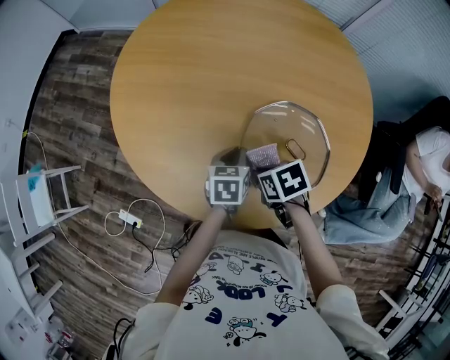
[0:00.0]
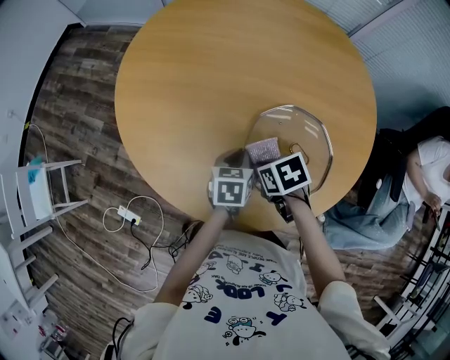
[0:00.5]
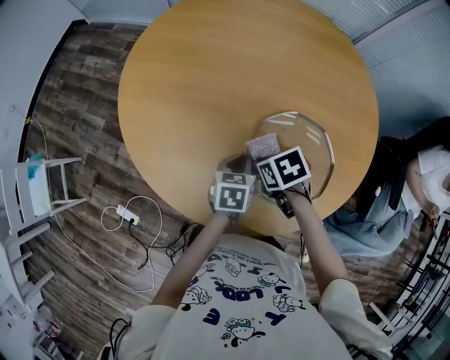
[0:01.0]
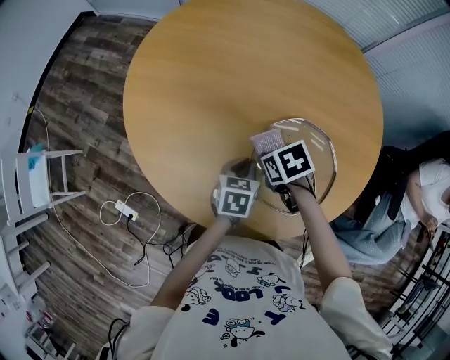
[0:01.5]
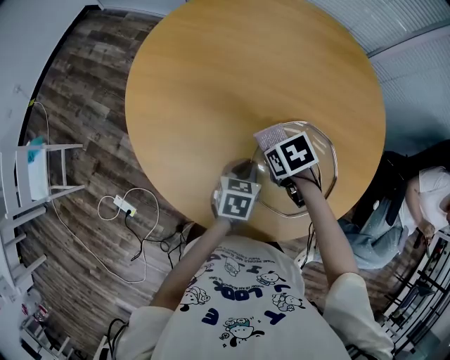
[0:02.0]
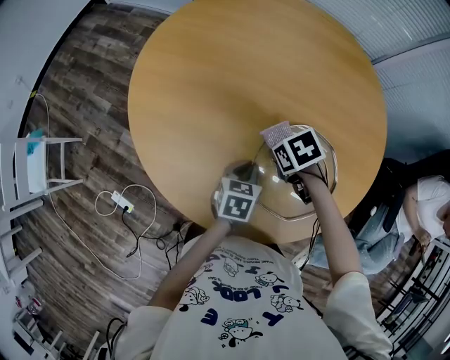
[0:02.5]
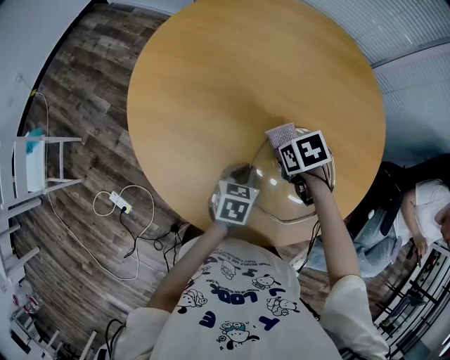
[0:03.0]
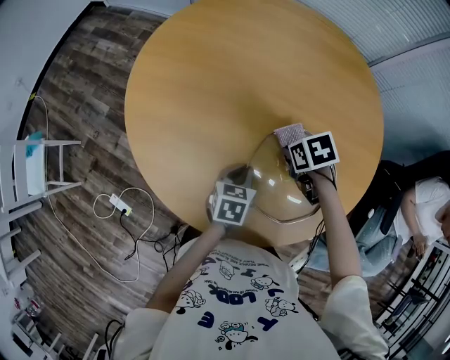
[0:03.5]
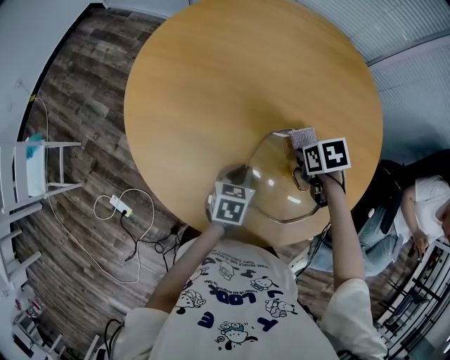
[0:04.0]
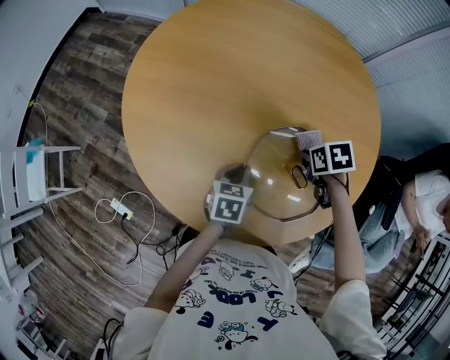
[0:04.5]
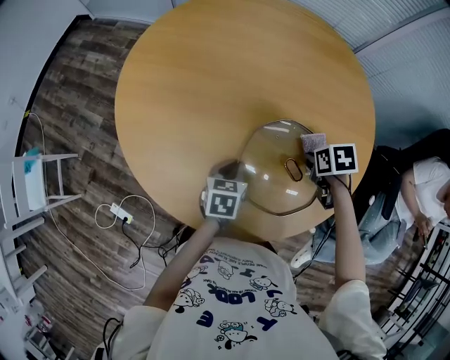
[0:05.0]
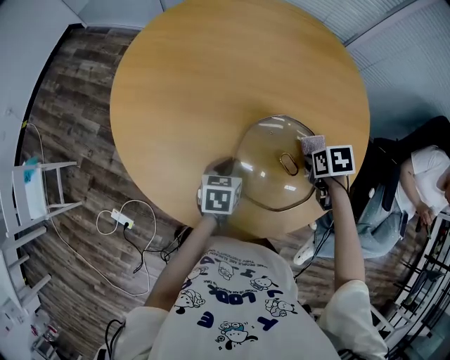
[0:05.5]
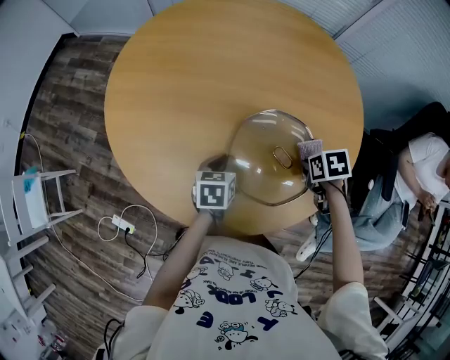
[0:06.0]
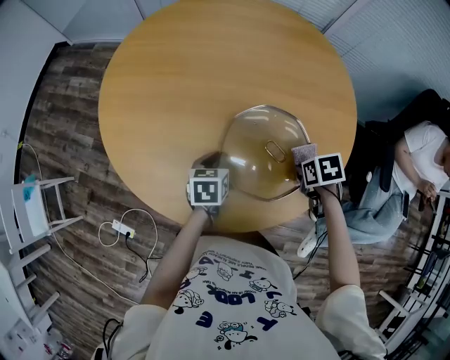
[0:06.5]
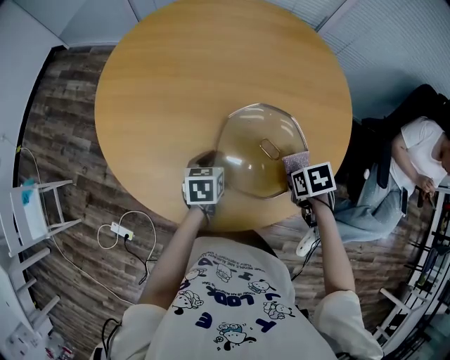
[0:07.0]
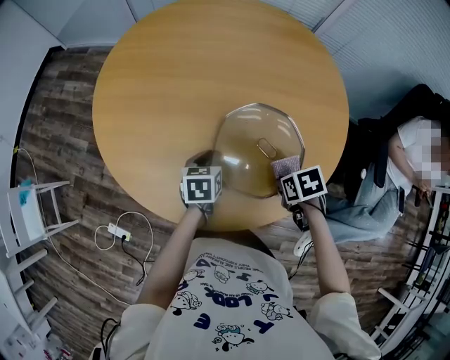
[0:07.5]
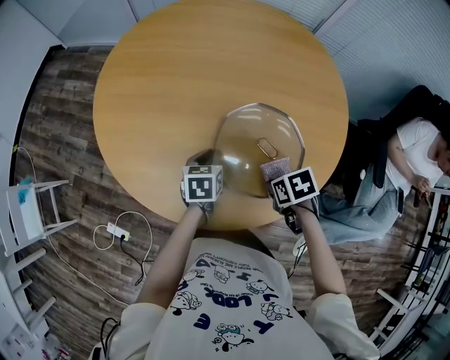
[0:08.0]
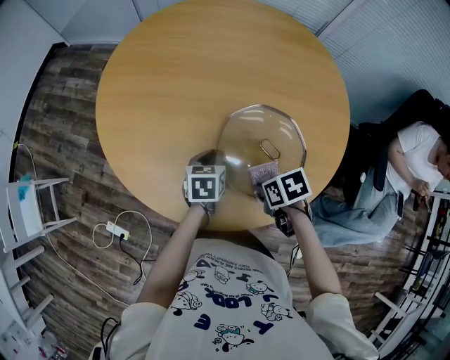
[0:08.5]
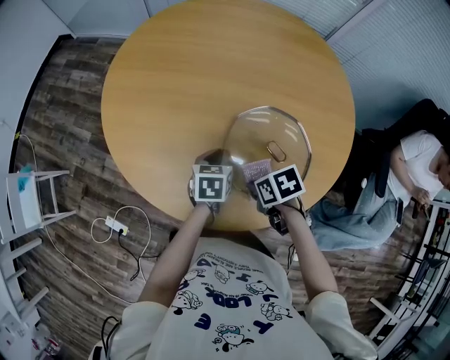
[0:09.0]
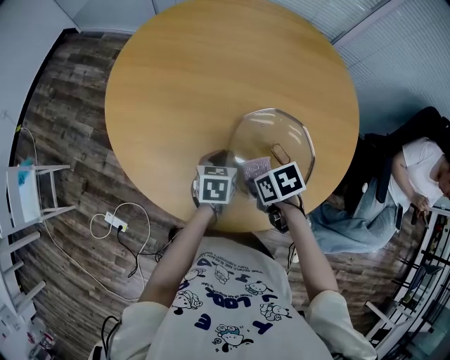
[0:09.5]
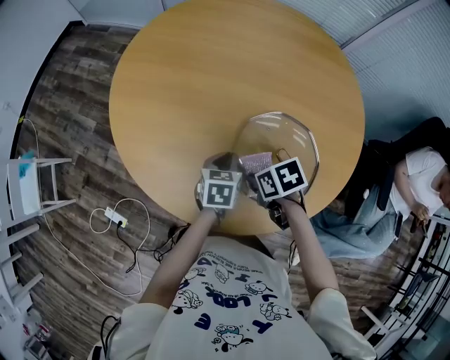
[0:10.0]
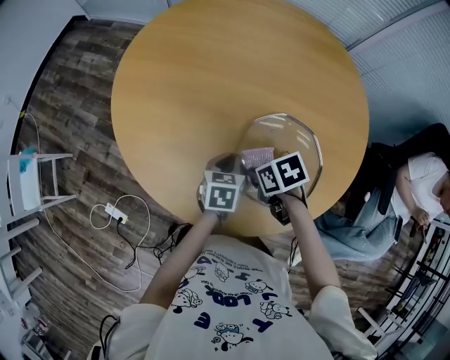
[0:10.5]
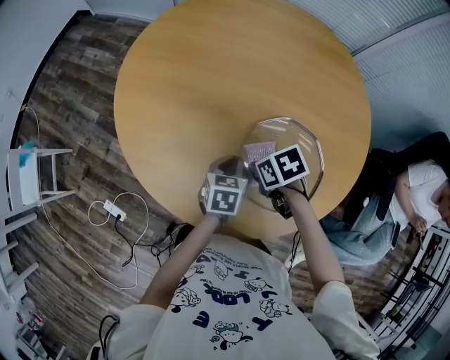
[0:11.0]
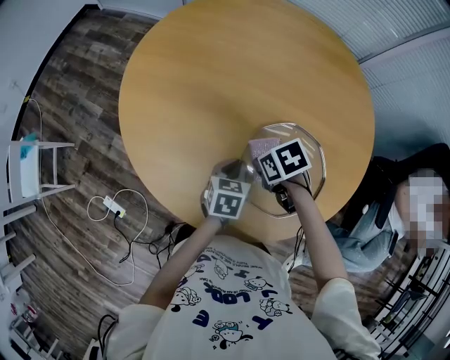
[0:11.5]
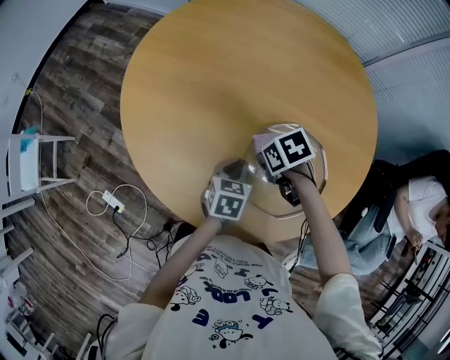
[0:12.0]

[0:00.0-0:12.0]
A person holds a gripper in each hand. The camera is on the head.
0:00.0 to 0:02.0: The right gripper goes approximately 10 cm forward.
0:02.0 to 0:04.0: The right gripper ends up about 10 cm from where it was.
0:04.0 to 0:06.0: The right gripper shifts by approximately 15 cm.
0:06.0 to 0:08.0: The right gripper changes place by some 10 cm.
0:08.0 to 0:10.0: The right gripper moves approximately 10 cm.
0:10.0 to 0:12.0: The right gripper shifts about 10 cm forward.

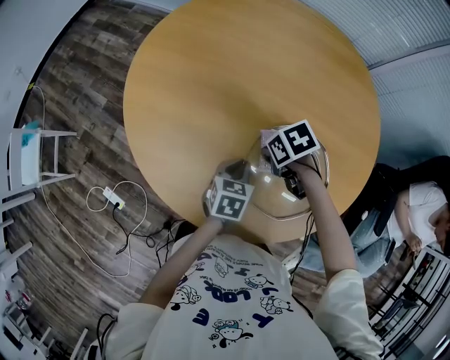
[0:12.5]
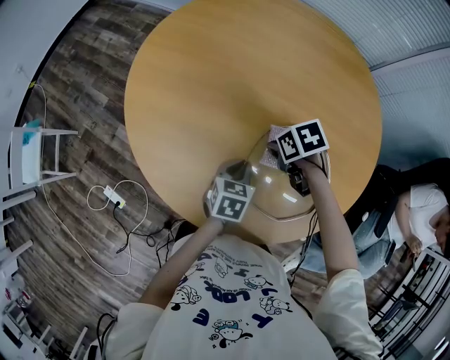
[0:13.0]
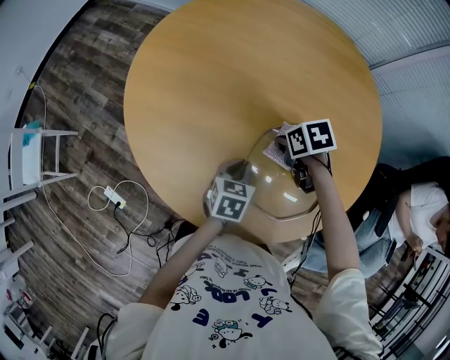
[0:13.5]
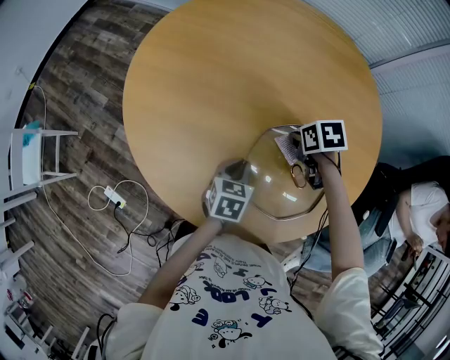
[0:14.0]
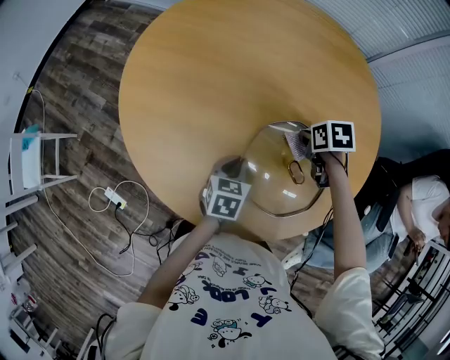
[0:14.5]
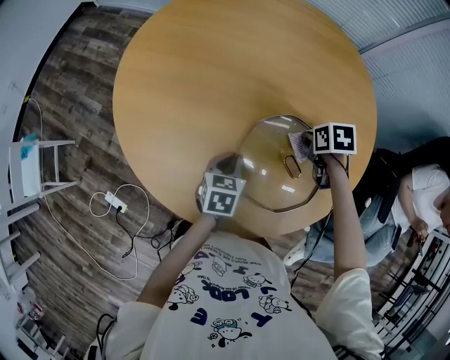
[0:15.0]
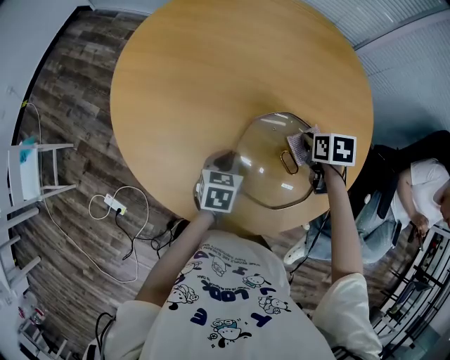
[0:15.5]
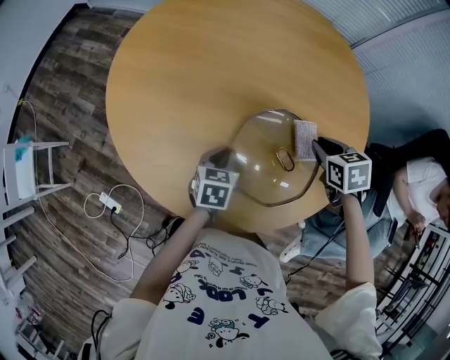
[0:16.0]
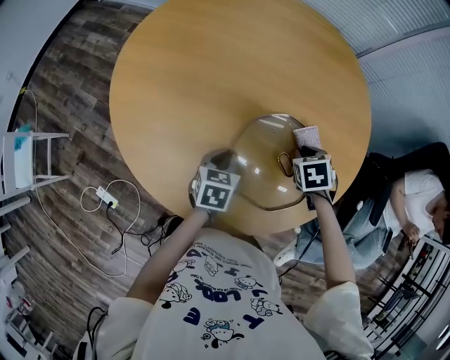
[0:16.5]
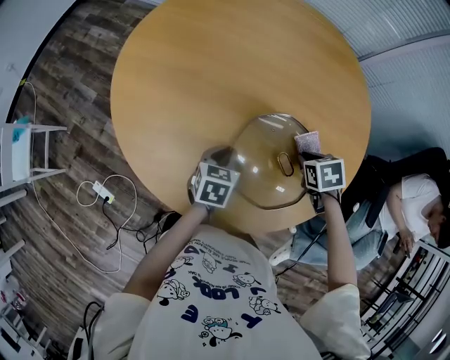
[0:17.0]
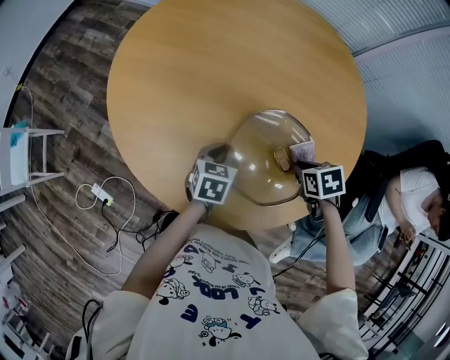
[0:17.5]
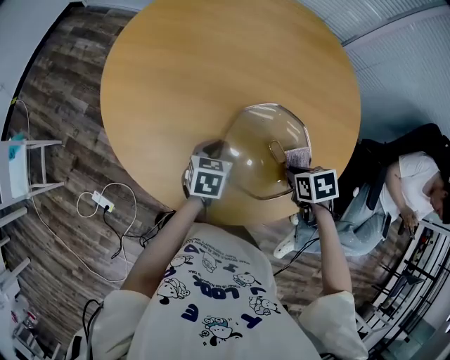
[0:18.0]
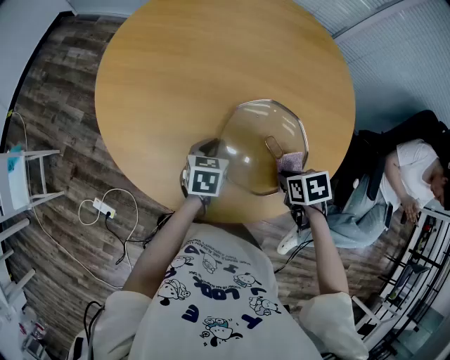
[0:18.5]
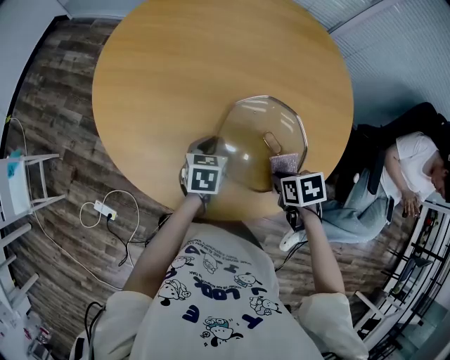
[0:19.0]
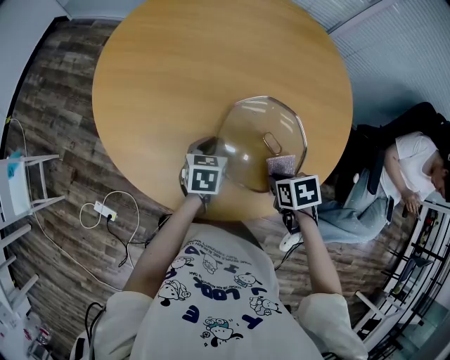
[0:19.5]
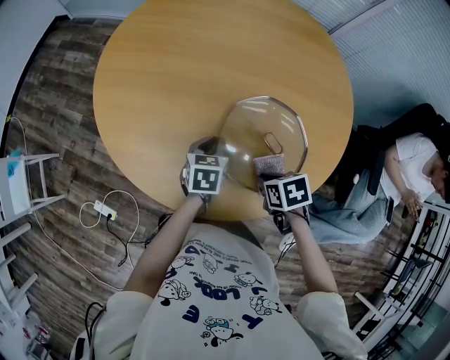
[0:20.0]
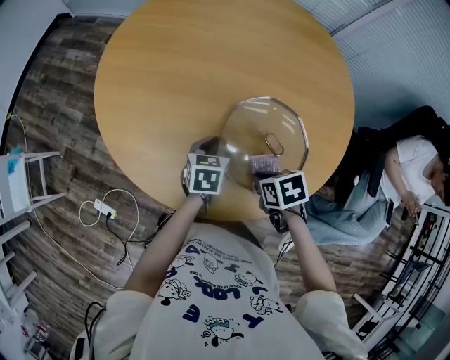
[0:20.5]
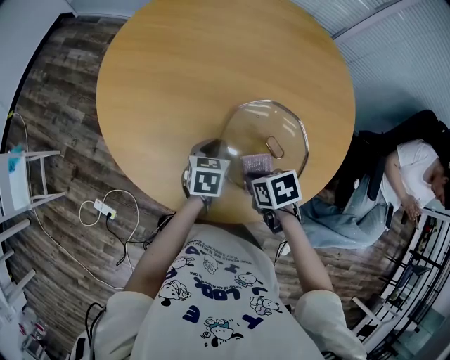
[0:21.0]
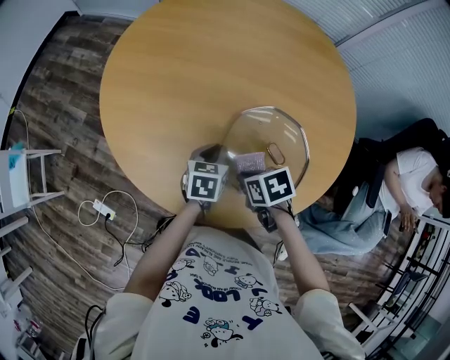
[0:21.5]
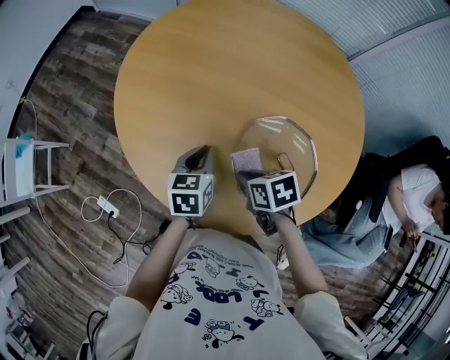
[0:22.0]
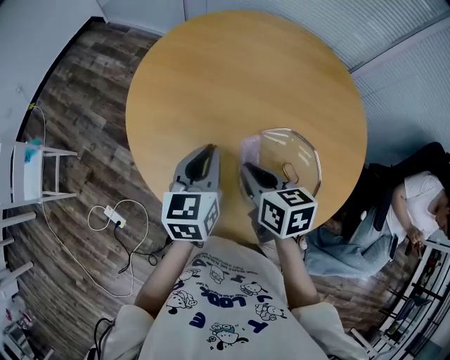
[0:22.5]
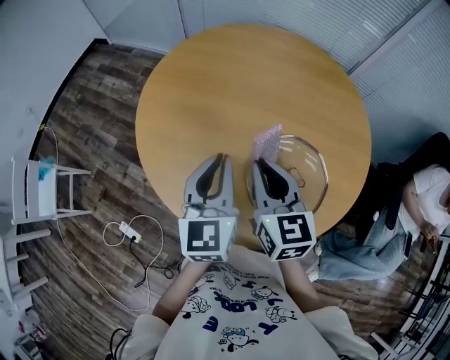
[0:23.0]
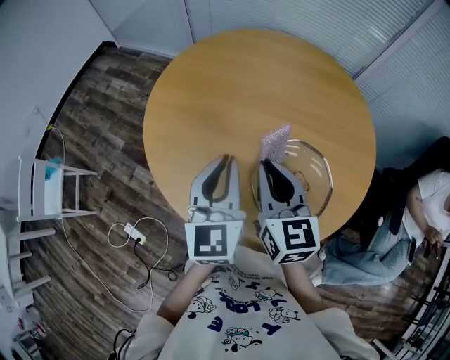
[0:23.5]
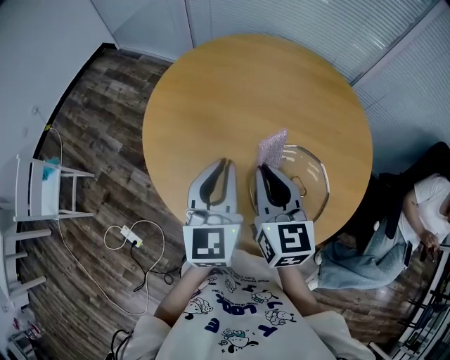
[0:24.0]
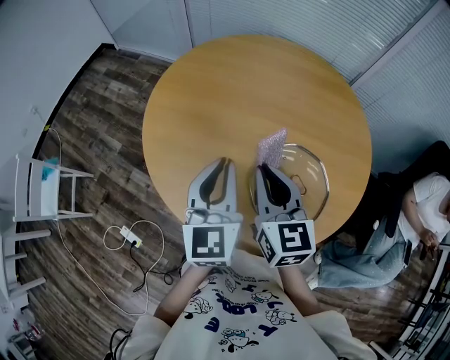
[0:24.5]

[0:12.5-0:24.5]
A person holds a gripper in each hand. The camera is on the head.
0:12.5 to 0:14.5: The right gripper changes place by approximately 15 cm, and turns by roughly 30 degrees.
0:14.5 to 0:16.5: The right gripper moves some 10 cm, and rotates some 20 degrees.
0:16.5 to 0:18.5: The right gripper moves approximately 15 cm, and swivels roughly 30 degrees.
0:18.5 to 0:20.5: The right gripper ends up some 10 cm from where it was.
0:20.5 to 0:22.5: The left gripper is displaced upward and to the left by about 20 cm, and turns by approximately 30 degrees; the right gripper travels forward, upward and to the left by about 20 cm, and points its fingers about 30 degrees further upward.
0:22.5 to 0:24.5: The grippers both shift upward by some 10 cm. The right gripper turns by approximately 30 degrees.

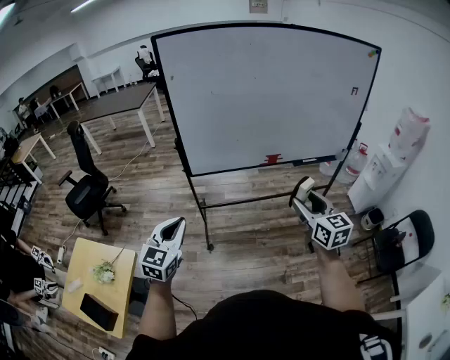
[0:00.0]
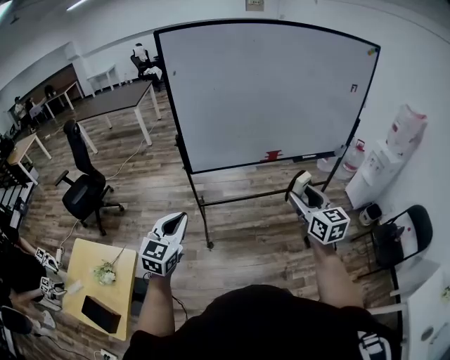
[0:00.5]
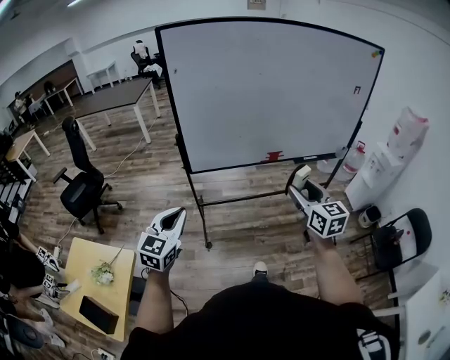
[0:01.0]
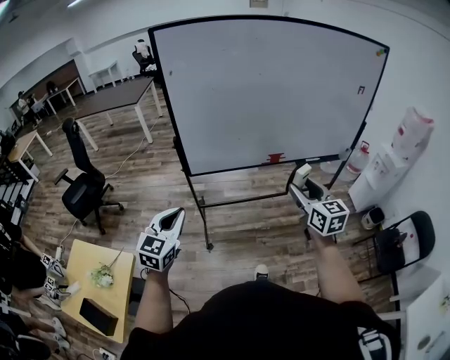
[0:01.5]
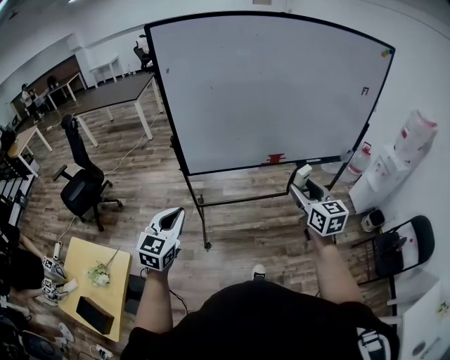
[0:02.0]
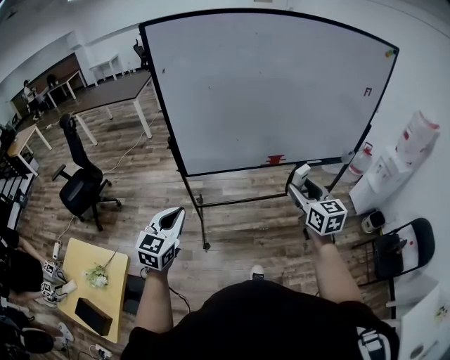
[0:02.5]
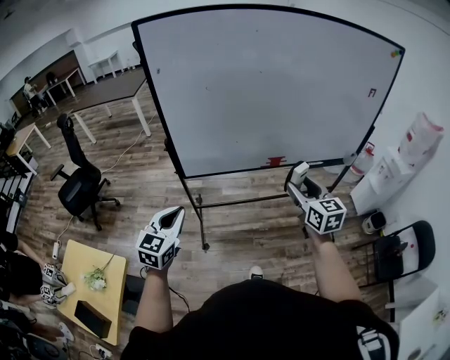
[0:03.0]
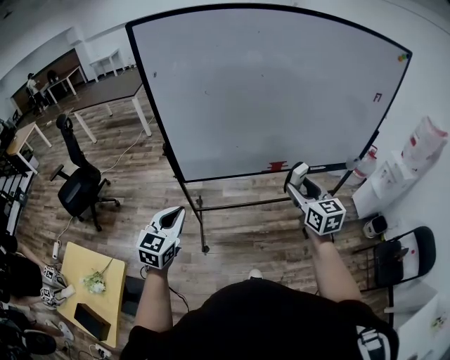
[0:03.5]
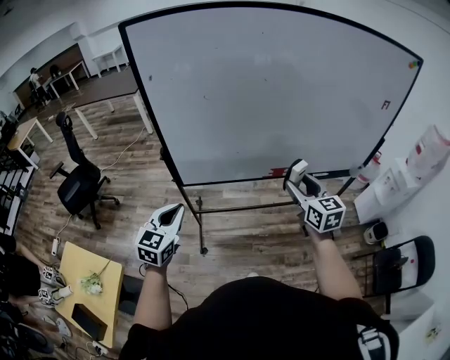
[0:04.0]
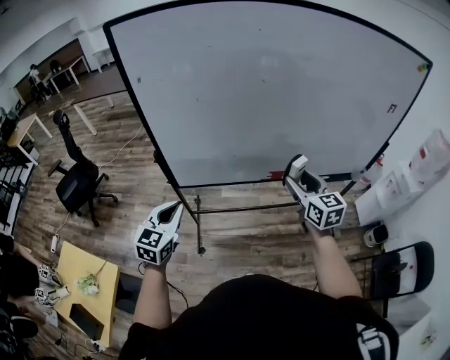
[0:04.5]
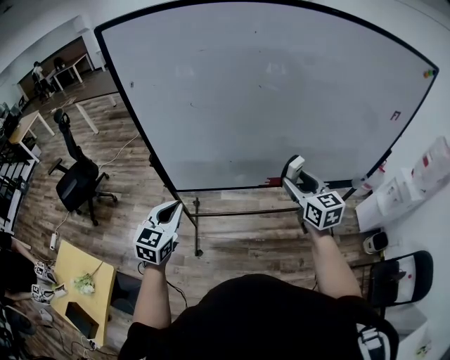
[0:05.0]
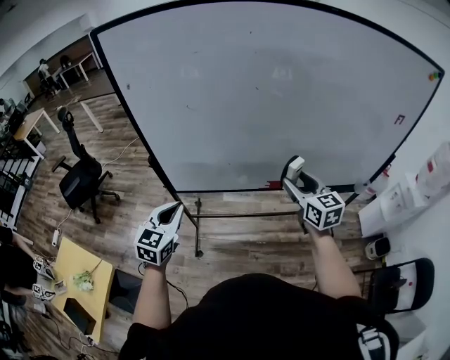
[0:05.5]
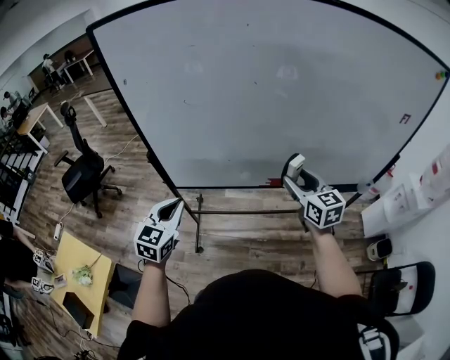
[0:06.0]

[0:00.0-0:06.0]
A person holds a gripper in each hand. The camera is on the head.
0:00.0 to 0:02.0: Both grippers move forward, about 10 cm.
0:02.0 to 0:04.0: Both grippers move forward, roughly 15 cm.
0:04.0 to 0:06.0: Both grippers travel together forward and to the right, approximately 15 cm.
